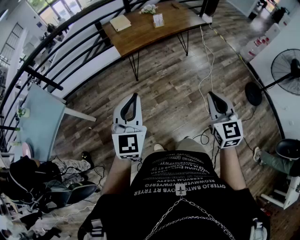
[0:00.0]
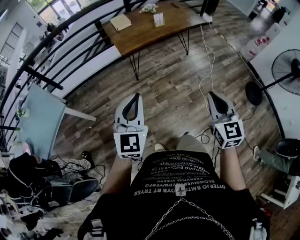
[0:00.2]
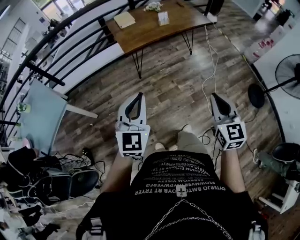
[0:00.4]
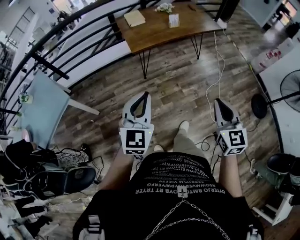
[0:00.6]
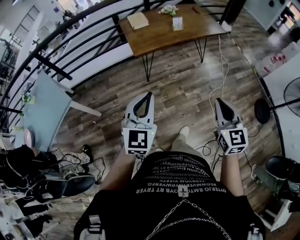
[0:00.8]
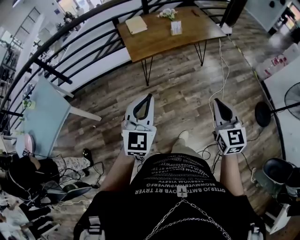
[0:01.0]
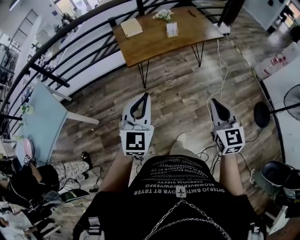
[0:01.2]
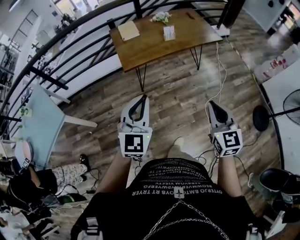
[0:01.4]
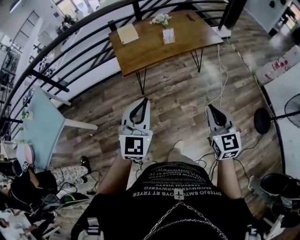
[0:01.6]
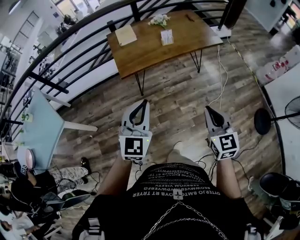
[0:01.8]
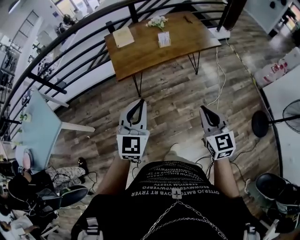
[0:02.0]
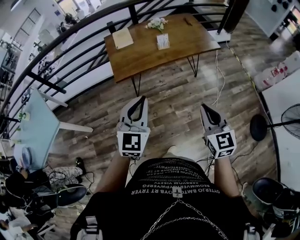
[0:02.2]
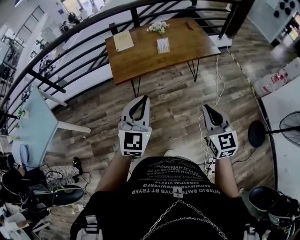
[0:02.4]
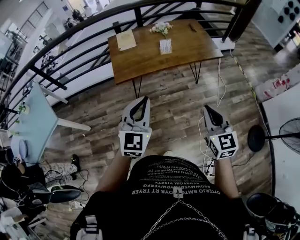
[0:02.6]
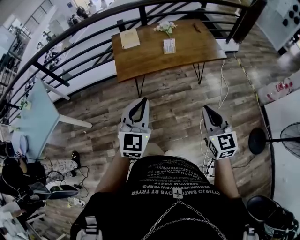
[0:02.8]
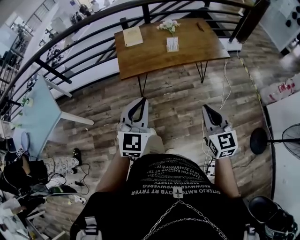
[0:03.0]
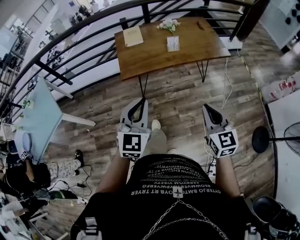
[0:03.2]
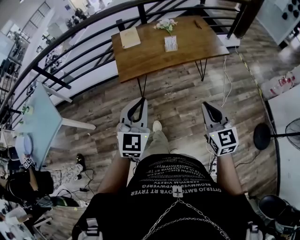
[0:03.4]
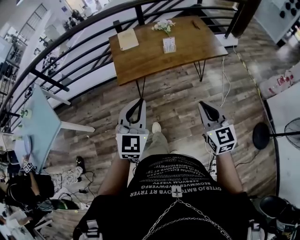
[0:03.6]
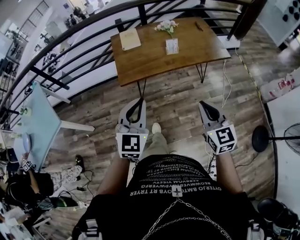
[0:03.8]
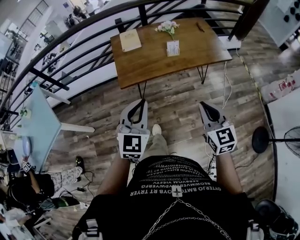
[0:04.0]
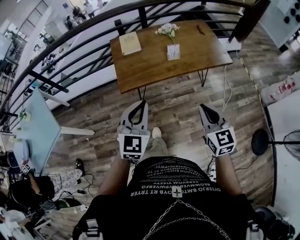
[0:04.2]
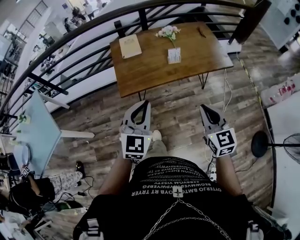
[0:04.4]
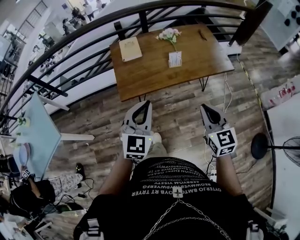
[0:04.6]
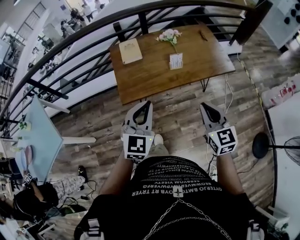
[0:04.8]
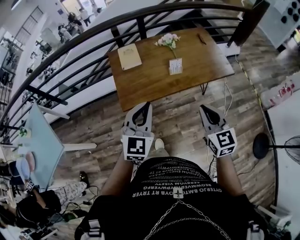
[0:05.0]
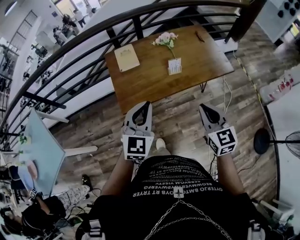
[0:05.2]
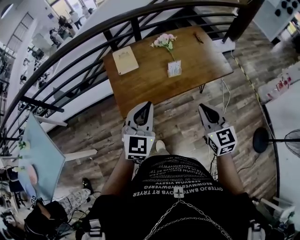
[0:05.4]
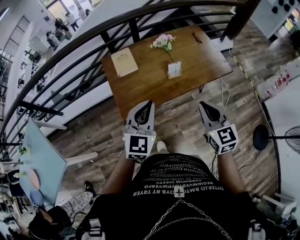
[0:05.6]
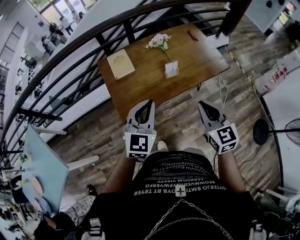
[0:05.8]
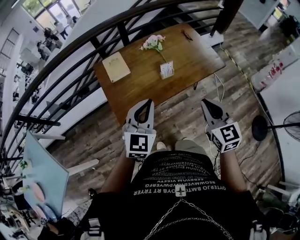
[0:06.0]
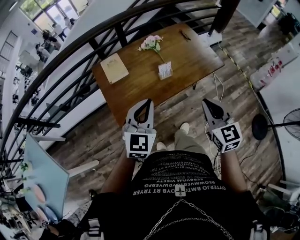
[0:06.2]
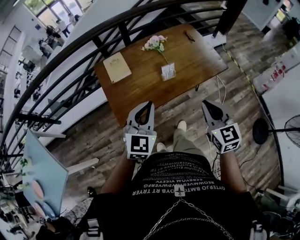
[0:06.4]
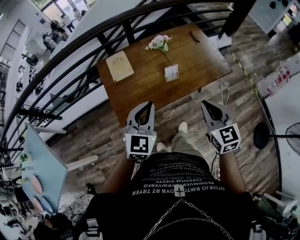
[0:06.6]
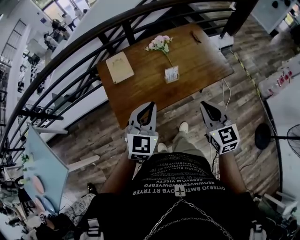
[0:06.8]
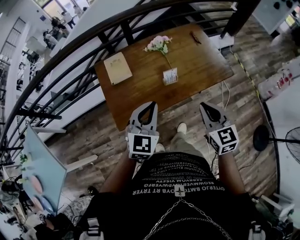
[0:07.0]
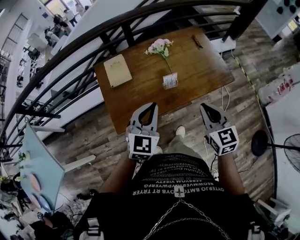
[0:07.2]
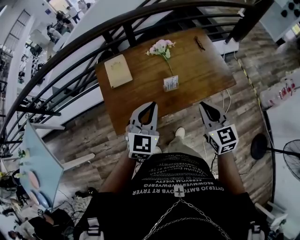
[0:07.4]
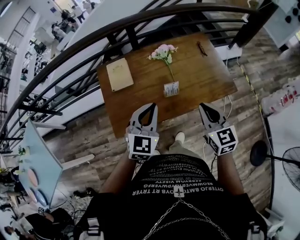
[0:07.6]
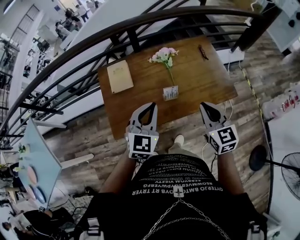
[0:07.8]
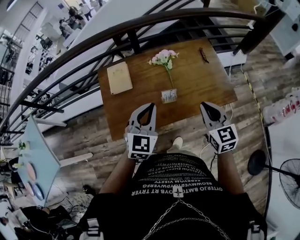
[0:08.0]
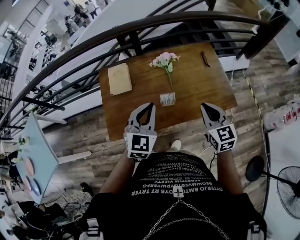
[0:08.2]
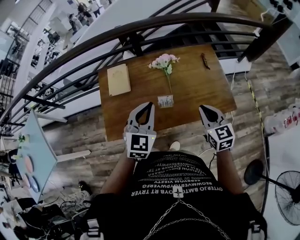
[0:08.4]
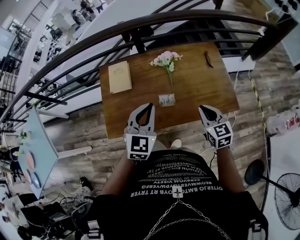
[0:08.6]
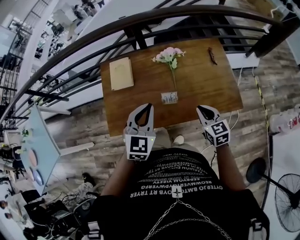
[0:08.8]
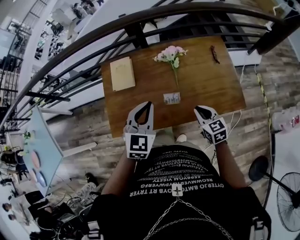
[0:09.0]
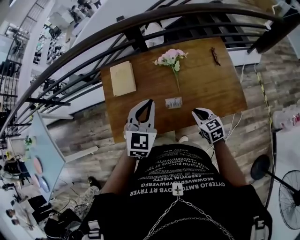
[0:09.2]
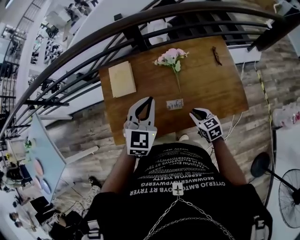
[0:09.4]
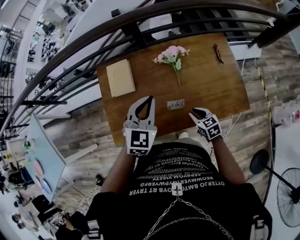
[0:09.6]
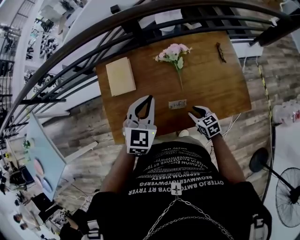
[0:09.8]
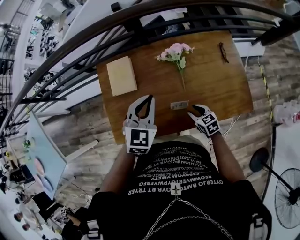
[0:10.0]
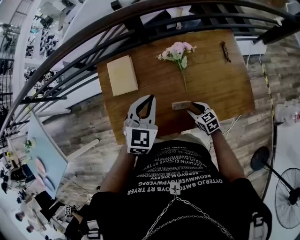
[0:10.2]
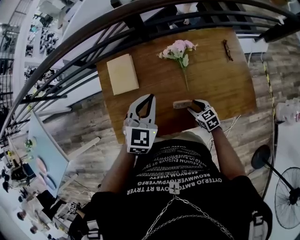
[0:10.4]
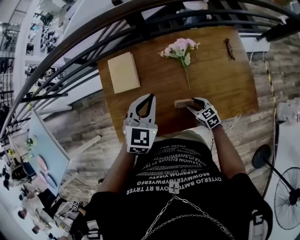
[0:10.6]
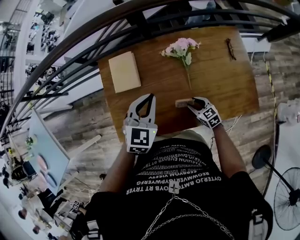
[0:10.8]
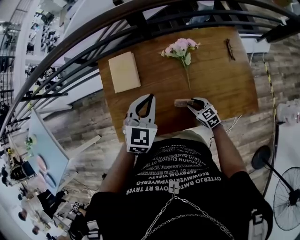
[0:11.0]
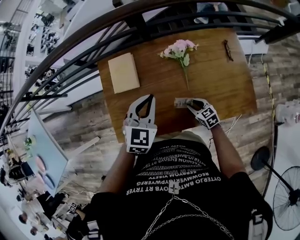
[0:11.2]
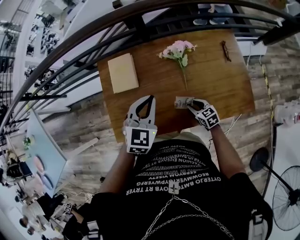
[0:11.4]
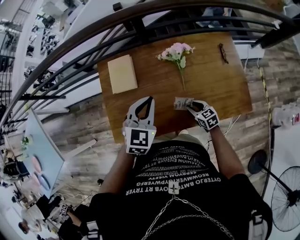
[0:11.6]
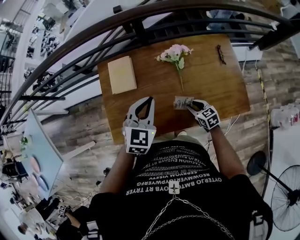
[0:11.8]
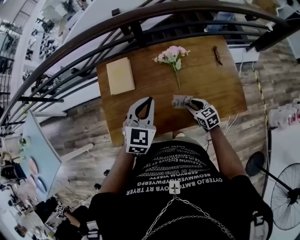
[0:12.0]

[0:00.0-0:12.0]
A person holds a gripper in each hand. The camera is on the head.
0:00.0 to 0:01.6: The left gripper is displaced forward and to the right by about 25 cm. The right gripper travels forward by approximately 20 cm.
0:01.6 to 0:03.0: Both grippers move forward and to the right, about 10 cm.
0:03.0 to 0:04.4: Both grippers travel together forward, approximately 15 cm.
0:04.4 to 0:06.0: The two grippers go about 15 cm forward.
0:06.0 to 0:07.6: The two grippers go roughly 15 cm forward.
0:07.6 to 0:09.0: The left gripper heads forward, covering some 10 cm; the right gripper goes some 20 cm downward and forward, and turns by roughly 20 degrees.
0:09.0 to 0:10.4: The right gripper goes about 20 cm downward and forward, and opens up, while the left gripper heads forward, covering some 10 cm.
0:10.4 to 0:12.0: The right gripper goes about 5 cm upward. Meanwhile the left gripper goes roughly 5 cm backward.

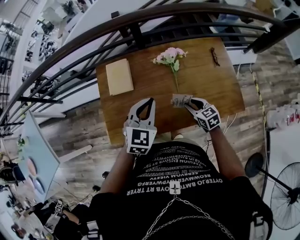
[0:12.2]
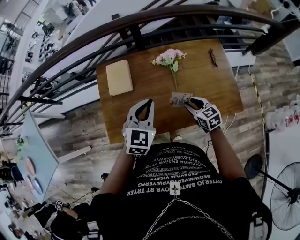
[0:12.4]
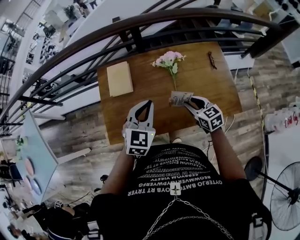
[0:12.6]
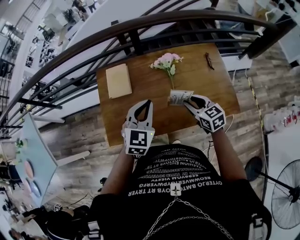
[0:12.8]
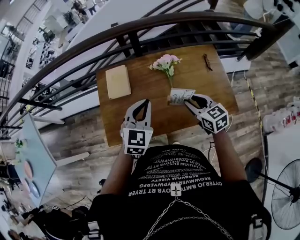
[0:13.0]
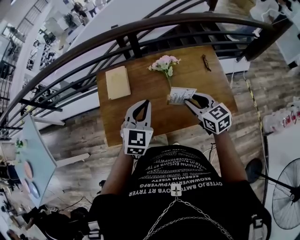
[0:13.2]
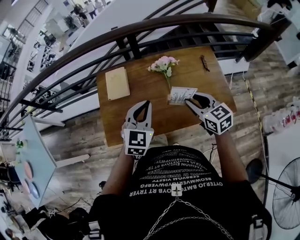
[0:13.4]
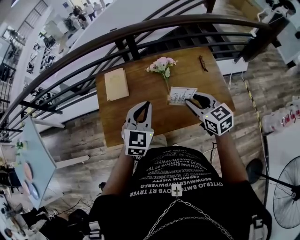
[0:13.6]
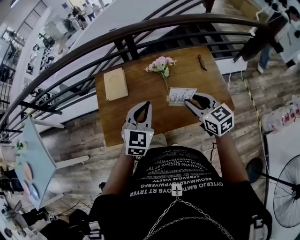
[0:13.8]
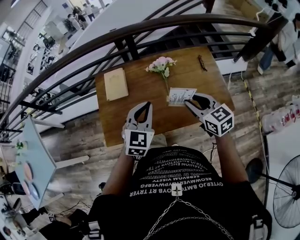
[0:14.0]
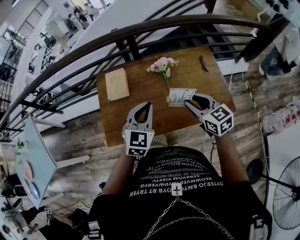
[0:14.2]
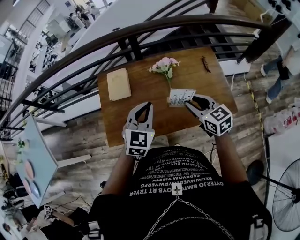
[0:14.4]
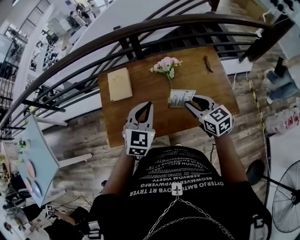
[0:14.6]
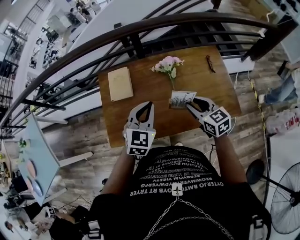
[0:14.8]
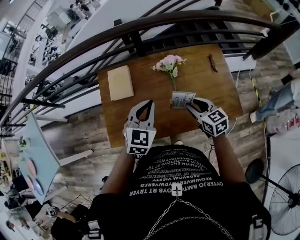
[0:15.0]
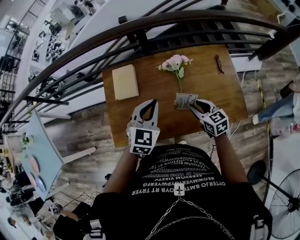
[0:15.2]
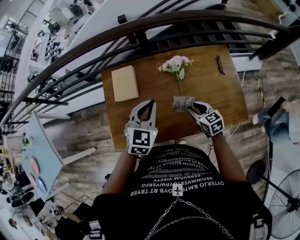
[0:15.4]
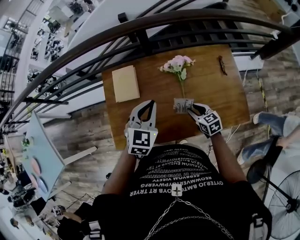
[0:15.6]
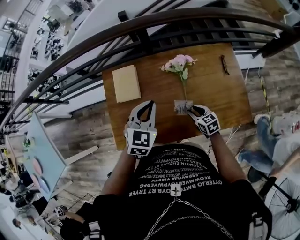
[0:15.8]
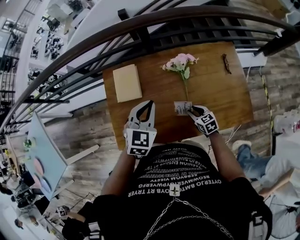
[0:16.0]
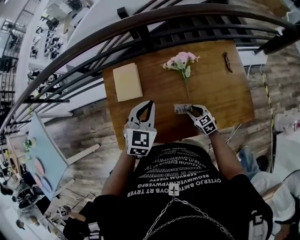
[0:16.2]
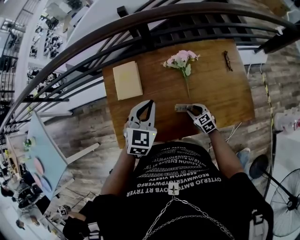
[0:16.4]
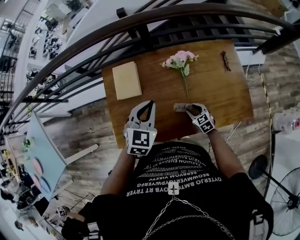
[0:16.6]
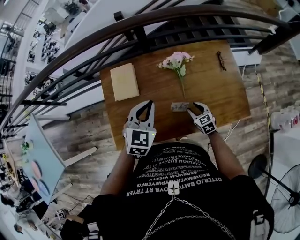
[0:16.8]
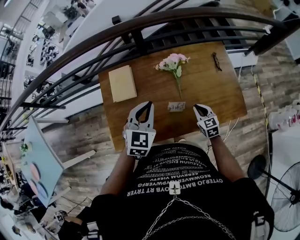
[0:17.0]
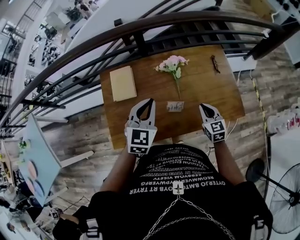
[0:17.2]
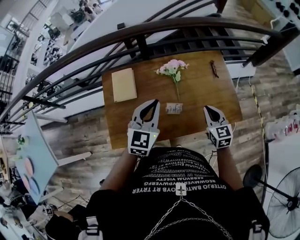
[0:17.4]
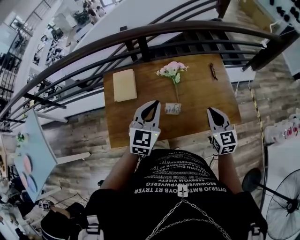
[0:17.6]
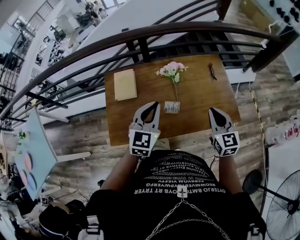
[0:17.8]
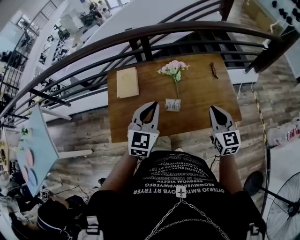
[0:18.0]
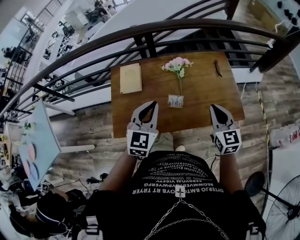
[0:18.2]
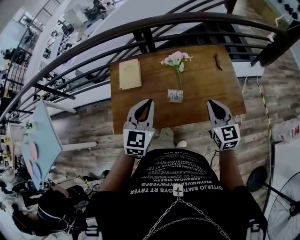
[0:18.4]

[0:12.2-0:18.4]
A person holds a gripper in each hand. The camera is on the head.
0:12.2 to 0:13.8: The left gripper travels backward by some 5 cm. Meanwhile the right gripper is displaced upward by approximately 20 cm.
0:13.8 to 0:15.4: The left gripper moves forward, some 10 cm. The right gripper moves downward and forward, roughly 20 cm.
0:15.4 to 0:16.8: The right gripper moves downward, some 10 cm.
0:16.8 to 0:18.4: The right gripper goes some 30 cm upward, changes its angle by some 30 degrees, and closes its fingers. Meanwhile the left gripper moves backward and upward, some 15 cm.

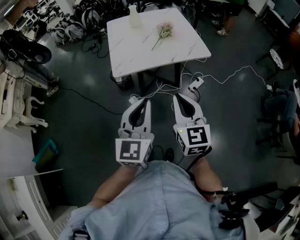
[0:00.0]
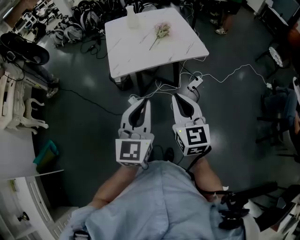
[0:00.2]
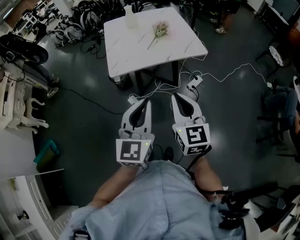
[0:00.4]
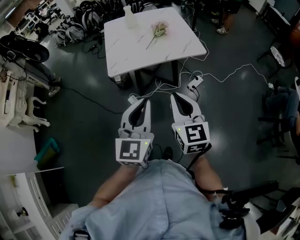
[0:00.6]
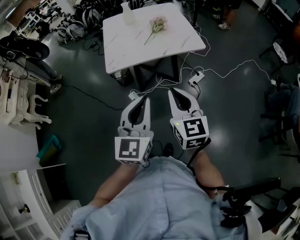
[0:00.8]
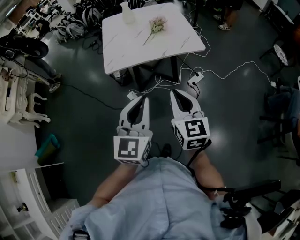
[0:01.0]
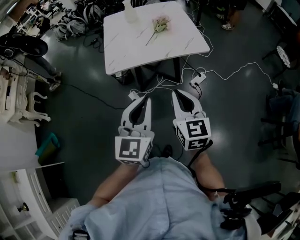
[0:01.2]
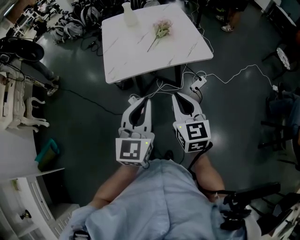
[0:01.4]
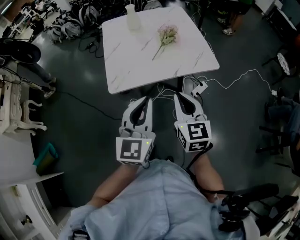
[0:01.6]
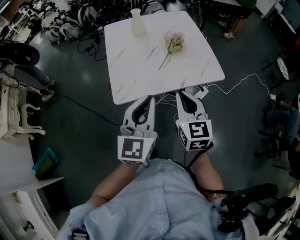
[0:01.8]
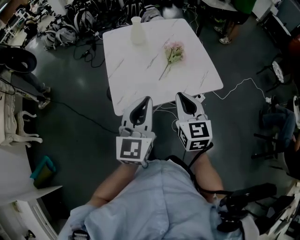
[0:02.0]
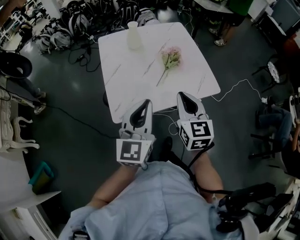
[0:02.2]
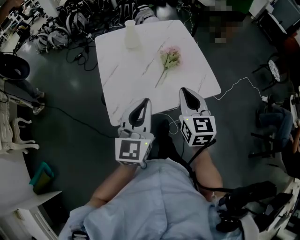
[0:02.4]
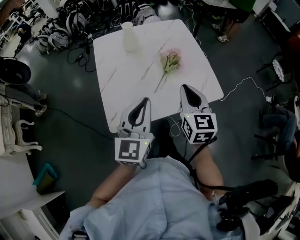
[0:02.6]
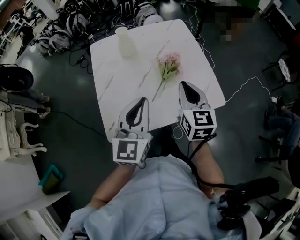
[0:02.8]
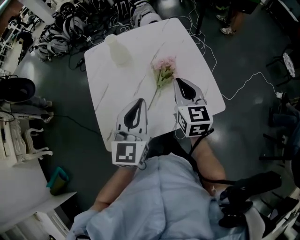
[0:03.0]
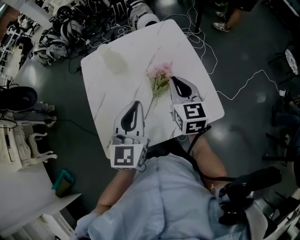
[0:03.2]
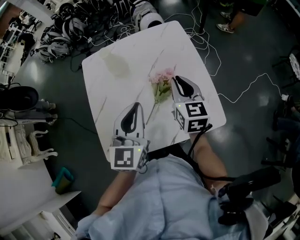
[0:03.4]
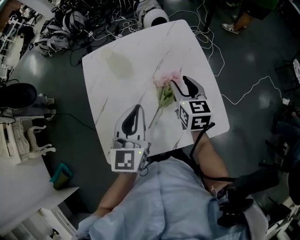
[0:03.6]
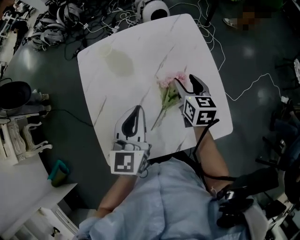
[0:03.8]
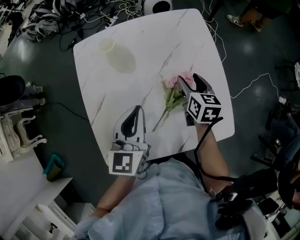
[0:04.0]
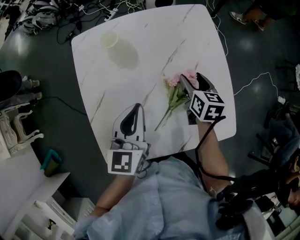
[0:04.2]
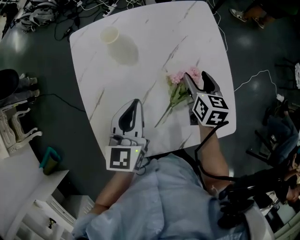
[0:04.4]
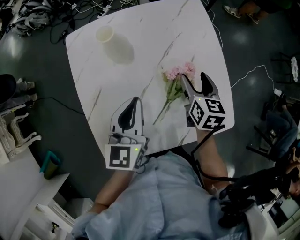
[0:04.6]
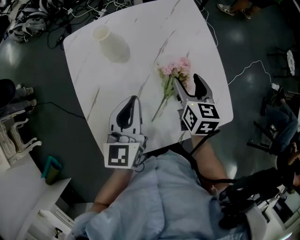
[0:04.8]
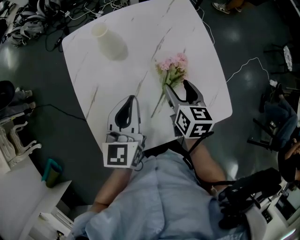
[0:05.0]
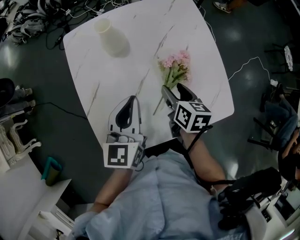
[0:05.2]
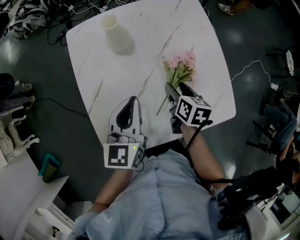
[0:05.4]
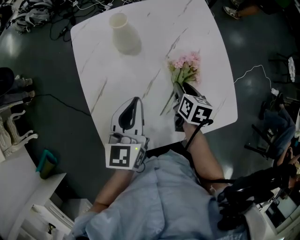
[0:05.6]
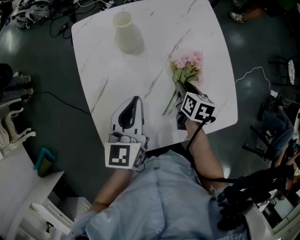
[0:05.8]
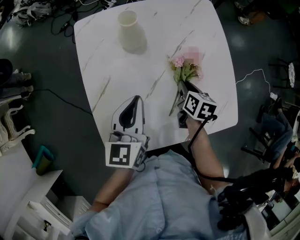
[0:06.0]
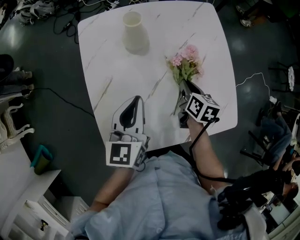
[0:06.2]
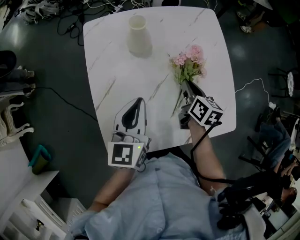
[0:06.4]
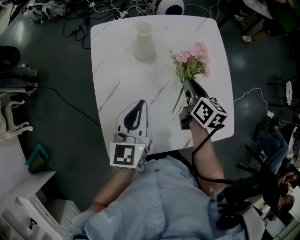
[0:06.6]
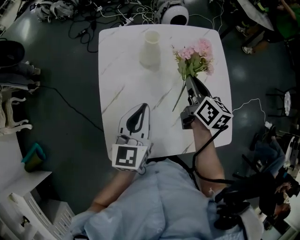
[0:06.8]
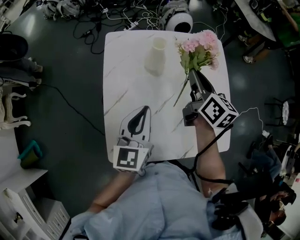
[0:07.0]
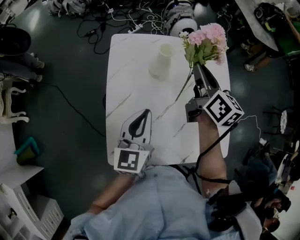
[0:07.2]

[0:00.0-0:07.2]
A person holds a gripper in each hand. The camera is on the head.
0:00.0 to 0:01.4: The right gripper goes approximately 10 cm forward; the left gripper goes roughly 10 cm forward and to the right.
0:01.4 to 0:02.8: Both grippers move forward, some 35 cm.
0:02.8 to 0:04.4: Both grippers move forward and downward, about 25 cm. The right gripper rotates roughly 30 degrees, and opens its fingers. Meanwhile the left gripper rotates some 20 degrees.
0:04.4 to 0:05.8: The right gripper shifts about 10 cm backward and downward, and closes its fingers.
0:05.8 to 0:07.2: The right gripper heads upward and forward, covering some 30 cm, points its fingers roughly 40 degrees further upward, and closes its fingers, while the left gripper changes place by some 5 cm.
